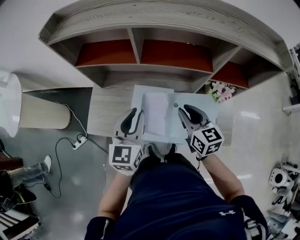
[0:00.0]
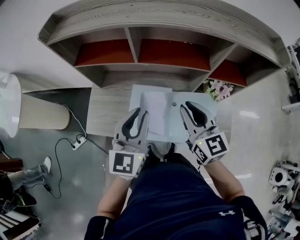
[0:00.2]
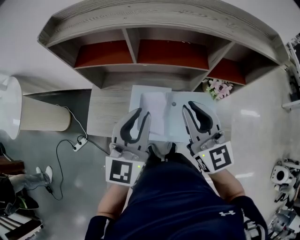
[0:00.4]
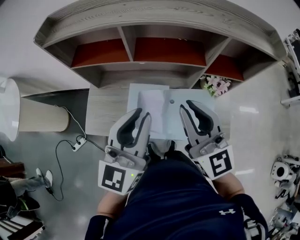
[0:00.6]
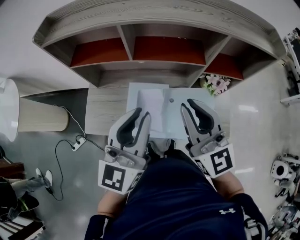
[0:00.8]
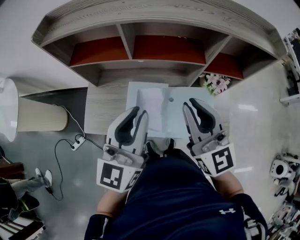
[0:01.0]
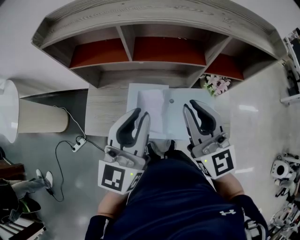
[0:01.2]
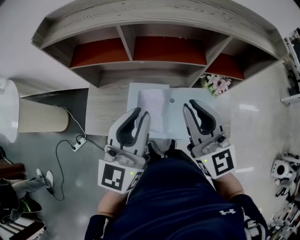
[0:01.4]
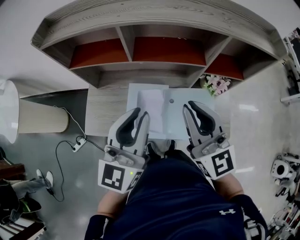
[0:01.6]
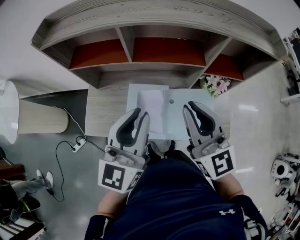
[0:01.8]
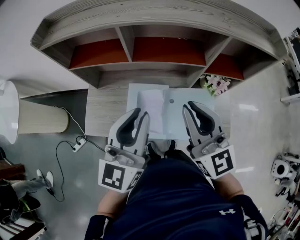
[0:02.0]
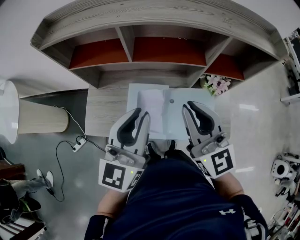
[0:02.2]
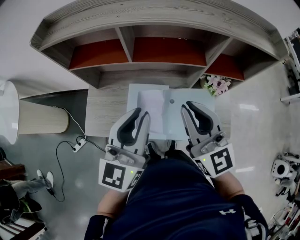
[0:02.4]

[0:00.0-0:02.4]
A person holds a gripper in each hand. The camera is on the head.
0:00.0 to 0:01.2: The two grippers go about 15 cm upward. The right gripper rotates about 30 degrees.
0:01.2 to 0:02.4: Neither gripper changes place.

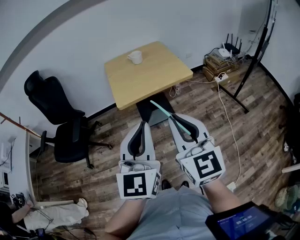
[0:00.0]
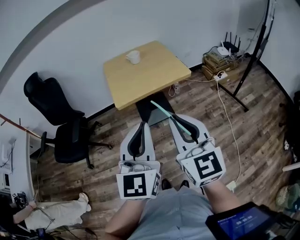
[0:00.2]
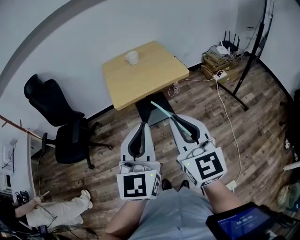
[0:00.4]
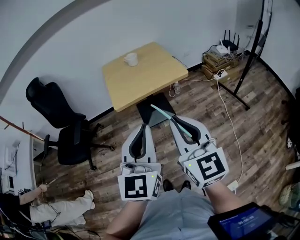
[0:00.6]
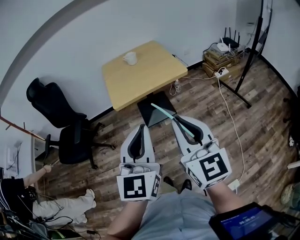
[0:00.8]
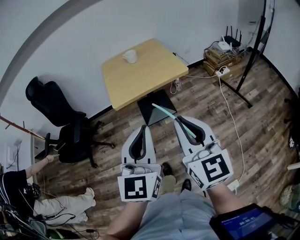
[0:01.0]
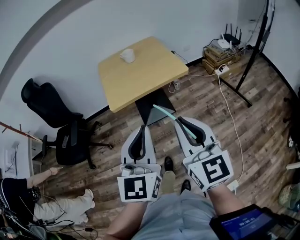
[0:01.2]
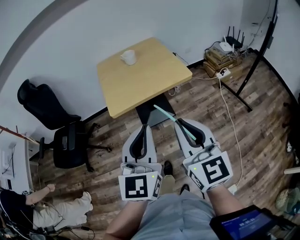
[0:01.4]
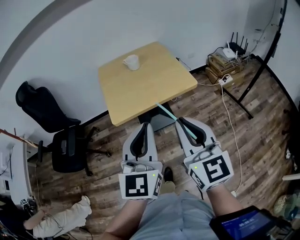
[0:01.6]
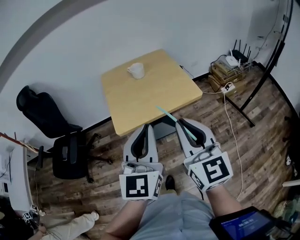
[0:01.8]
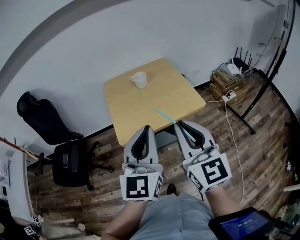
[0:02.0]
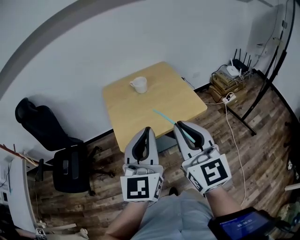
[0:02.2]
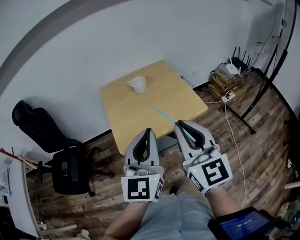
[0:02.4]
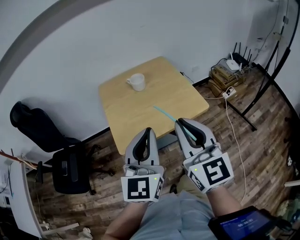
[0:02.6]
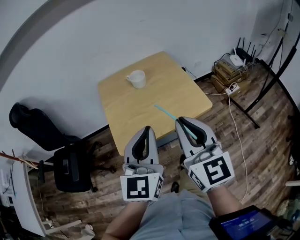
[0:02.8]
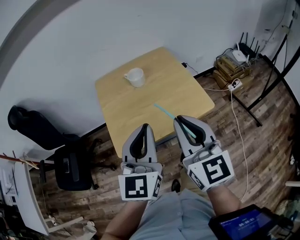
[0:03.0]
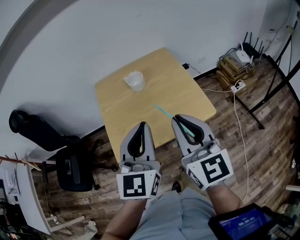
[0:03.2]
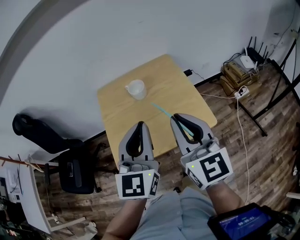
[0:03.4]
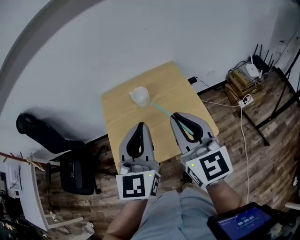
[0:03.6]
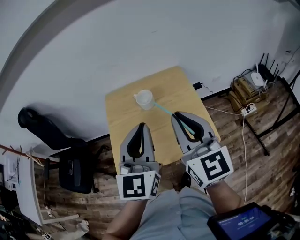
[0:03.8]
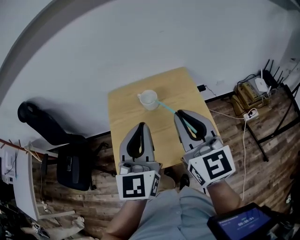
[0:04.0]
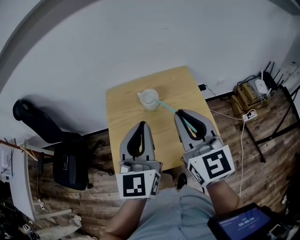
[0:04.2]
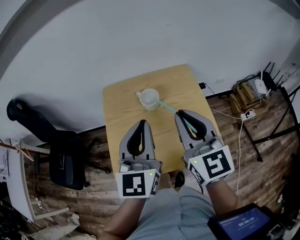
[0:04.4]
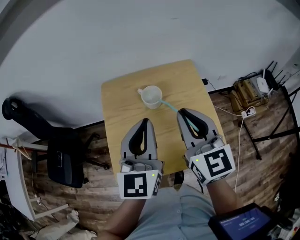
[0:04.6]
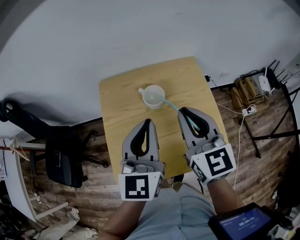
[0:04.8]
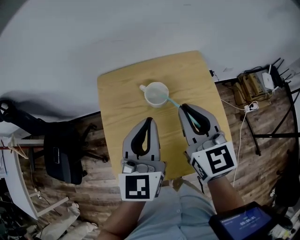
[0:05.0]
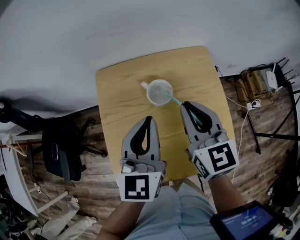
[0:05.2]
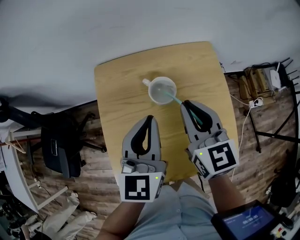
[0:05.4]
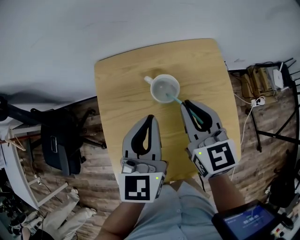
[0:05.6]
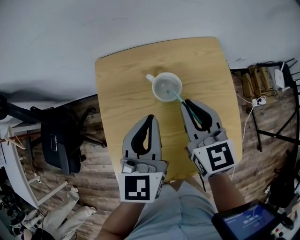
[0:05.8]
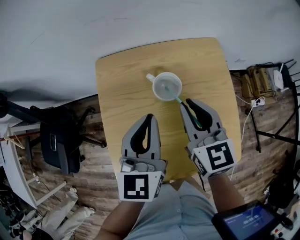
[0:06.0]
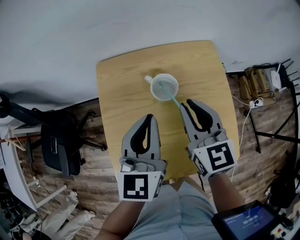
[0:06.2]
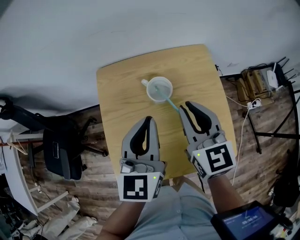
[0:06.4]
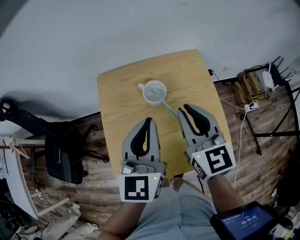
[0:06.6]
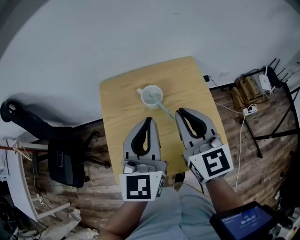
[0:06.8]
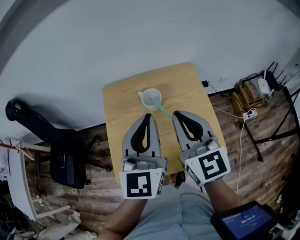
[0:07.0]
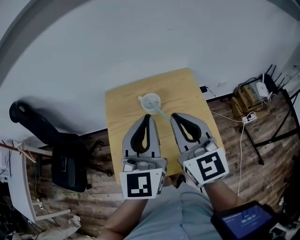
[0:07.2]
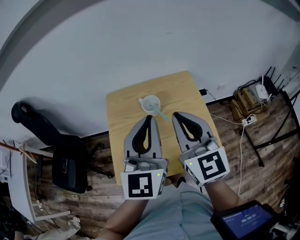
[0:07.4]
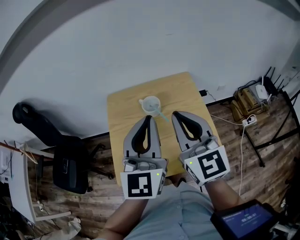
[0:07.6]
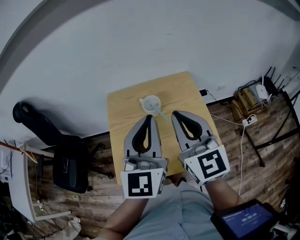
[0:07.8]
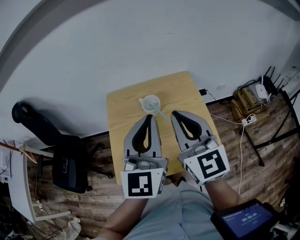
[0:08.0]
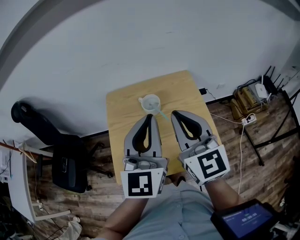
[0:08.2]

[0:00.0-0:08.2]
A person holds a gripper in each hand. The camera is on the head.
0:00.0 to 0:01.6: The left gripper goes approximately 15 cm forward. Meanwhile the right gripper is displaced forward and to the right by approximately 15 cm.
0:01.6 to 0:03.2: Both grippers travel together forward, approximately 25 cm.
0:03.2 to 0:05.0: Both grippers move forward, approximately 25 cm.
0:05.0 to 0:06.6: The right gripper reaches approximately 10 cm downward, then returns.
0:06.6 to 0:08.2: The two grippers go about 15 cm upward and backward.

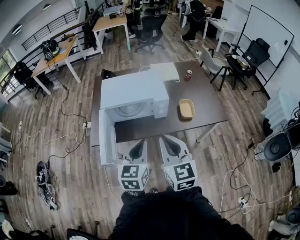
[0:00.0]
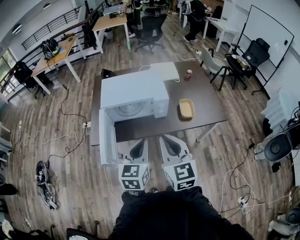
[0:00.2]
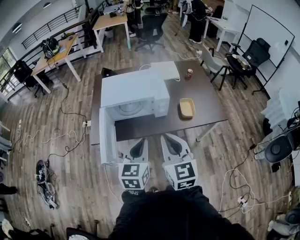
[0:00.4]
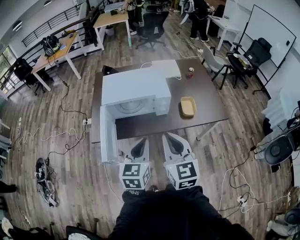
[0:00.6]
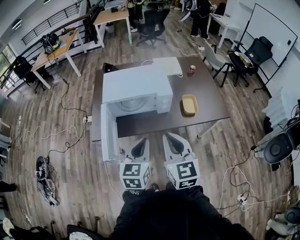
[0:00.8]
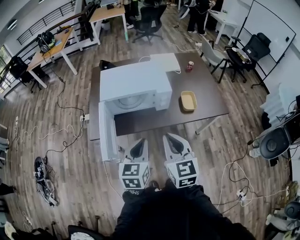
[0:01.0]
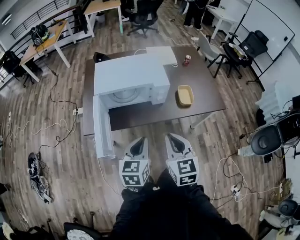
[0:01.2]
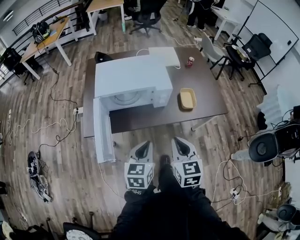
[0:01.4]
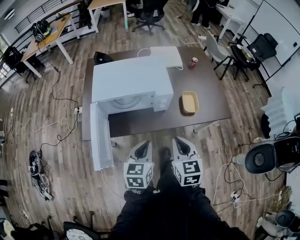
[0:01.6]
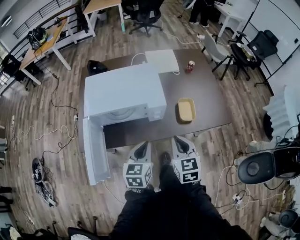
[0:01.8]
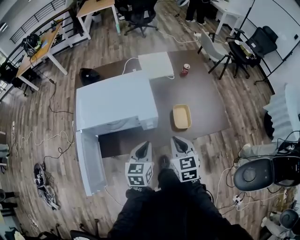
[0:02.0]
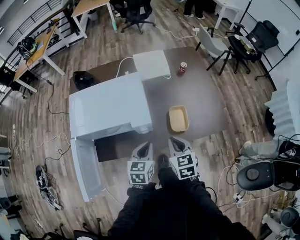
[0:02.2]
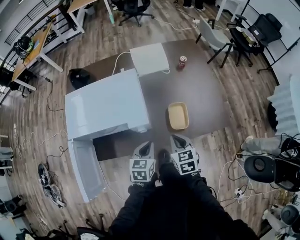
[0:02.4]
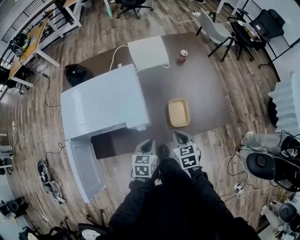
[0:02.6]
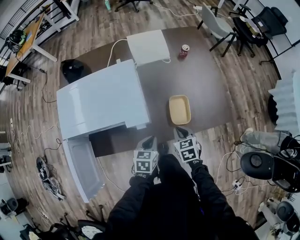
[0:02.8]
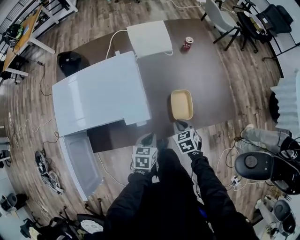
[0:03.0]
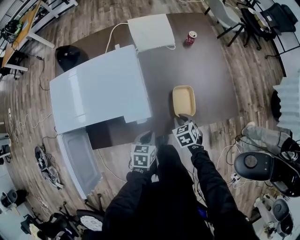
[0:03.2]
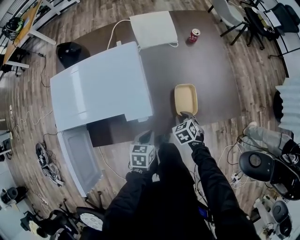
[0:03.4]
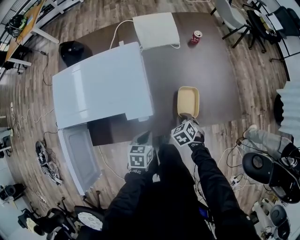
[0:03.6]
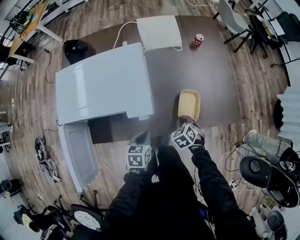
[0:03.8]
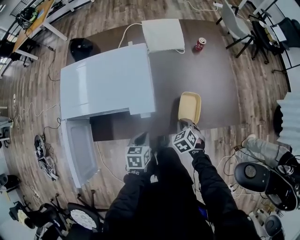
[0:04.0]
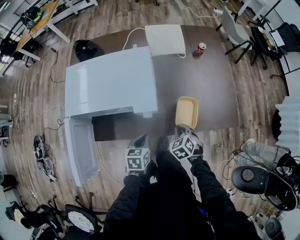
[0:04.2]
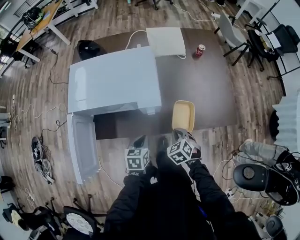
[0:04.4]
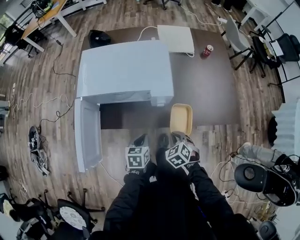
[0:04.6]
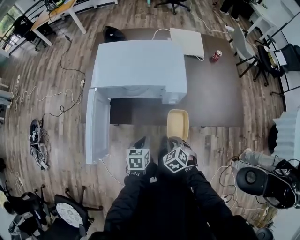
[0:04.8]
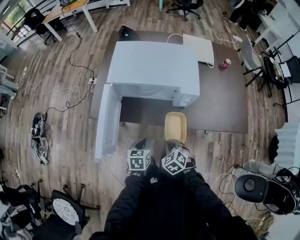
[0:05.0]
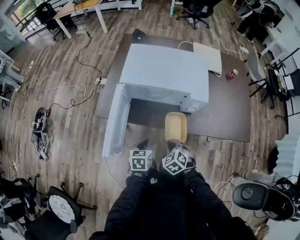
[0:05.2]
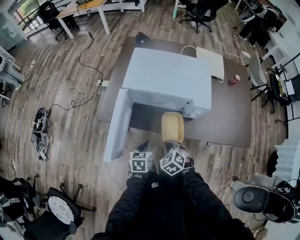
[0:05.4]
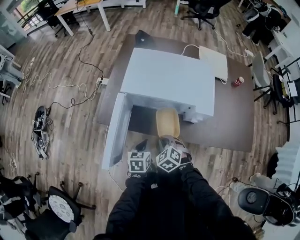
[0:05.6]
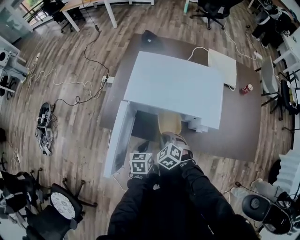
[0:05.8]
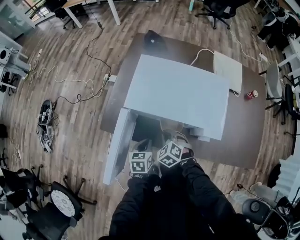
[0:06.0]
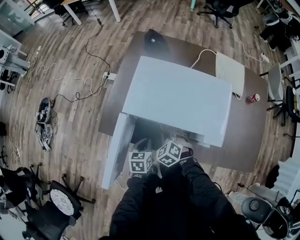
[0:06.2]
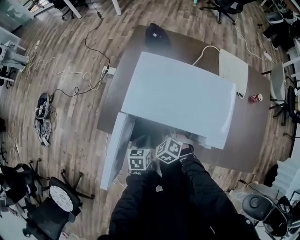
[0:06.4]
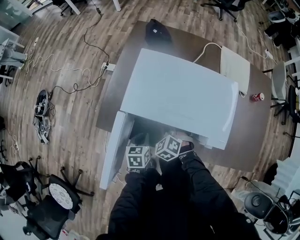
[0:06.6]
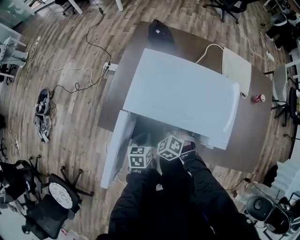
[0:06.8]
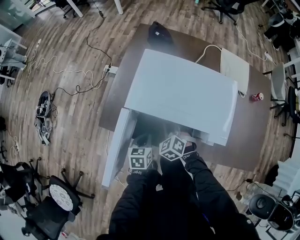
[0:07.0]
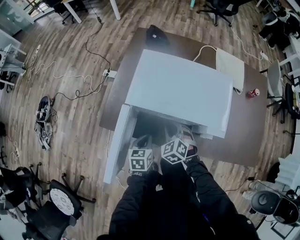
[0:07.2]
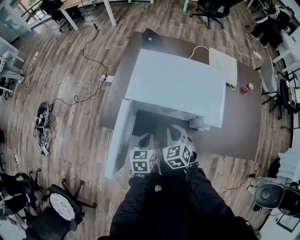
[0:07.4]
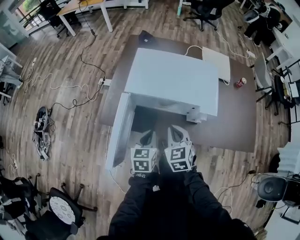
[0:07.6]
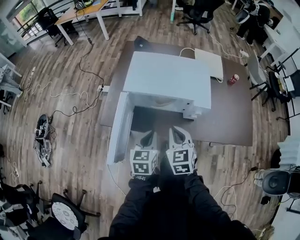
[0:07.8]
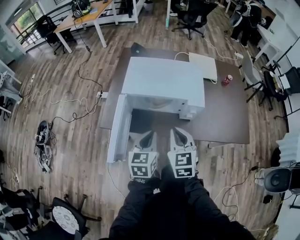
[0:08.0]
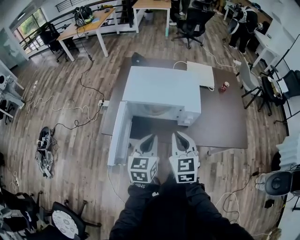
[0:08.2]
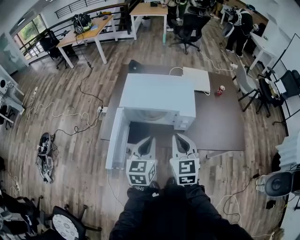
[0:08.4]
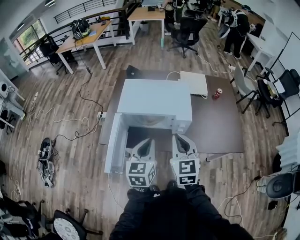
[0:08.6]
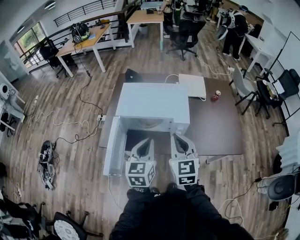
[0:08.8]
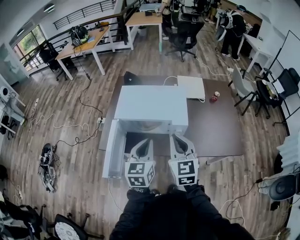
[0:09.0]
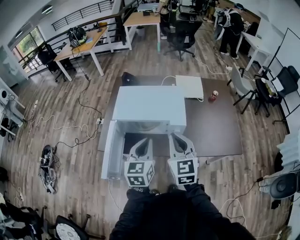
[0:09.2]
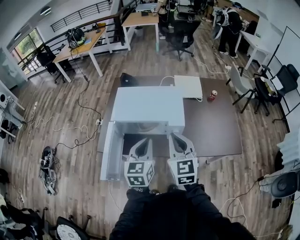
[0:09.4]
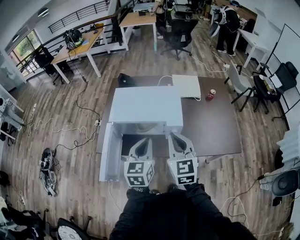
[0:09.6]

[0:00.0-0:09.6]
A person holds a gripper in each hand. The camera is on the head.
0:00.0 to 0:01.6: The two grippers go about 15 cm downward and forward.
0:01.6 to 0:03.2: Both grippers move downward, forward and to the right, roughly 35 cm. The left gripper changes its angle by roughly 30 degrees. Meanwhile the right gripper angles its fingers downward, by approximately 30 degrees.
0:03.2 to 0:04.8: The two grippers go roughly 25 cm backward and to the left. The right gripper changes its angle by approximately 30 degrees.
0:04.8 to 0:06.4: Both grippers travel together forward and to the left, about 25 cm. The right gripper changes its angle by roughly 30 degrees.
0:06.4 to 0:08.0: The two grippers go approximately 25 cm upward and backward. The right gripper angles its fingers upward, by about 30 degrees. Meanwhile the left gripper swivels roughly 30 degrees.
0:08.0 to 0:09.6: Both grippers travel together upward and to the right, roughly 15 cm.

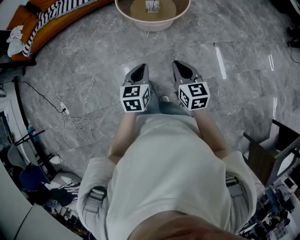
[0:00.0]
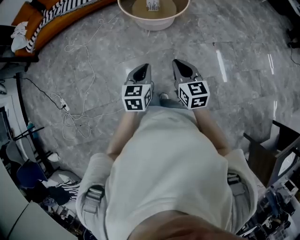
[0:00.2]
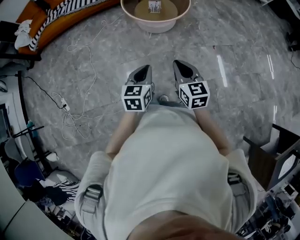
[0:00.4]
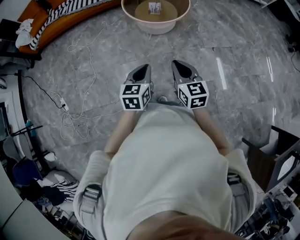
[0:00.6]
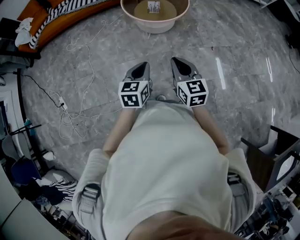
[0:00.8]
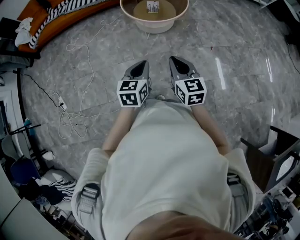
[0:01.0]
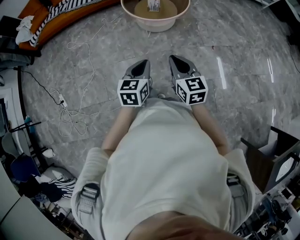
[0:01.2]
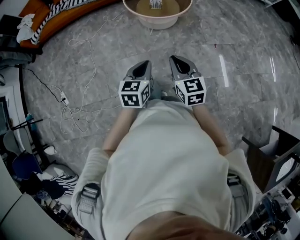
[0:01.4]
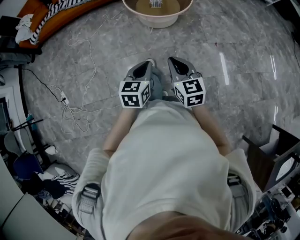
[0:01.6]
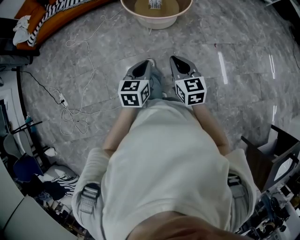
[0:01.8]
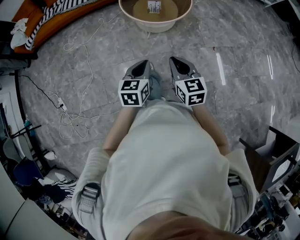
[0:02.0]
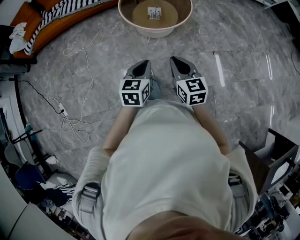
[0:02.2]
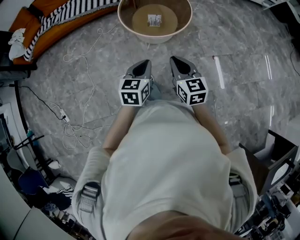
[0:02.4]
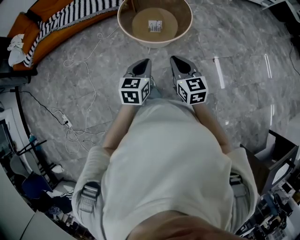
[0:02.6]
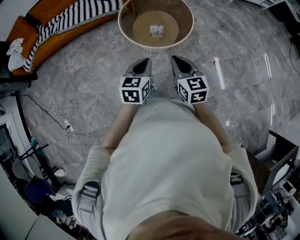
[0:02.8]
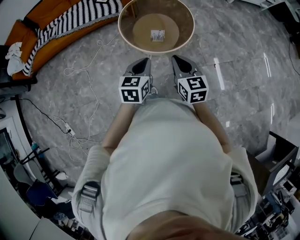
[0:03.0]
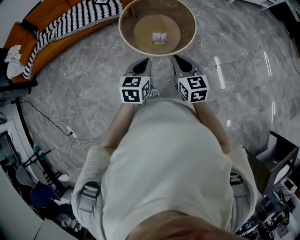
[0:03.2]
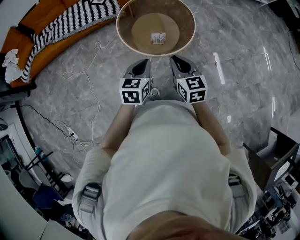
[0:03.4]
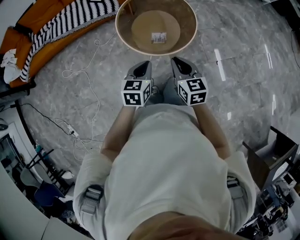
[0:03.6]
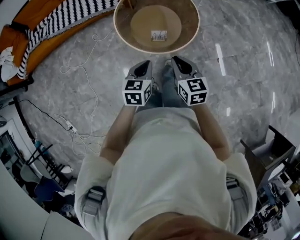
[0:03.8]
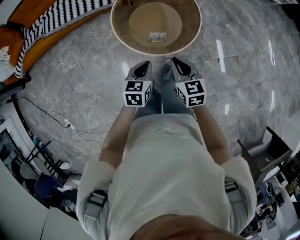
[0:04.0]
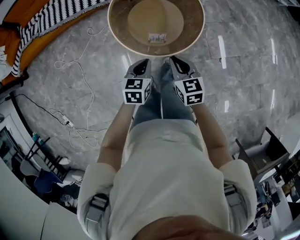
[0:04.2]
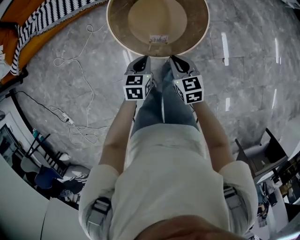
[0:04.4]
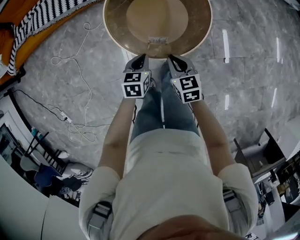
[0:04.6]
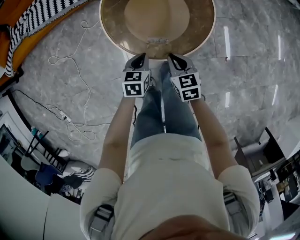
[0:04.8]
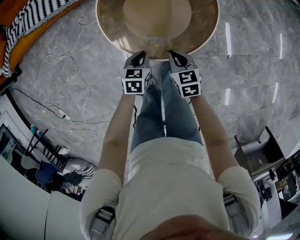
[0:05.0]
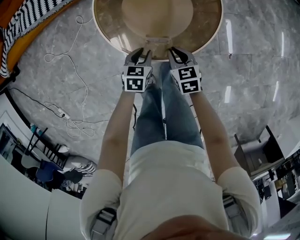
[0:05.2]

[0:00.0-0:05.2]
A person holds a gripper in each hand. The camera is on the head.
0:00.0 to 0:01.8: The left gripper heads backward, covering about 5 cm.
0:01.8 to 0:03.4: Both grippers move forward, approximately 35 cm.
0:03.4 to 0:05.2: Both grippers travel together downward and forward, about 35 cm. The left gripper rotates about 20 degrees, and opens its fingers; the right gripper turns by some 30 degrees.
